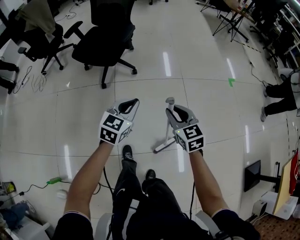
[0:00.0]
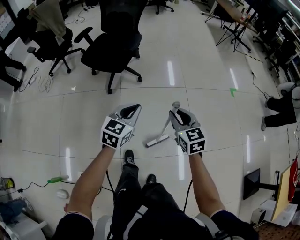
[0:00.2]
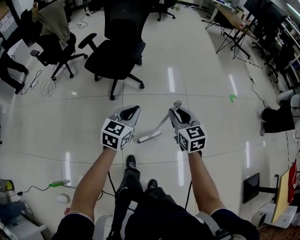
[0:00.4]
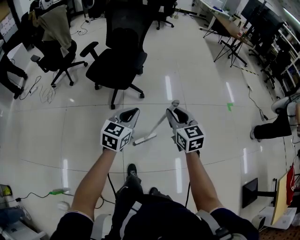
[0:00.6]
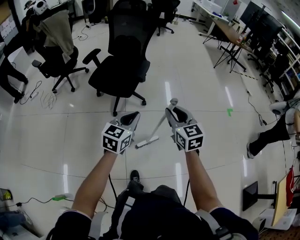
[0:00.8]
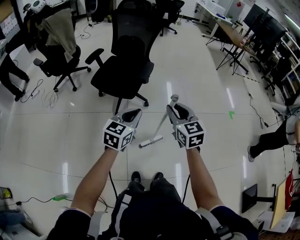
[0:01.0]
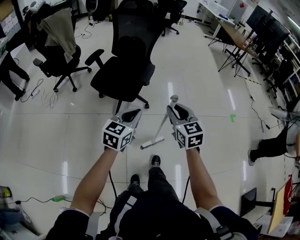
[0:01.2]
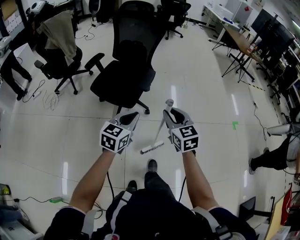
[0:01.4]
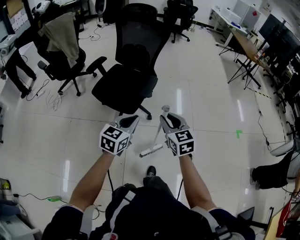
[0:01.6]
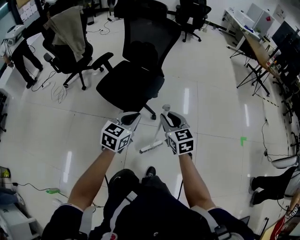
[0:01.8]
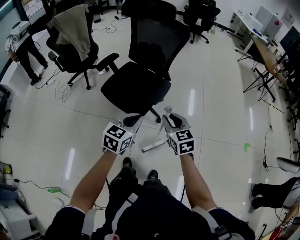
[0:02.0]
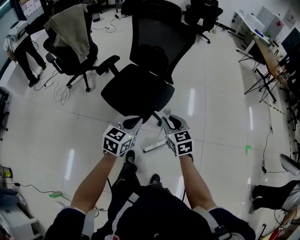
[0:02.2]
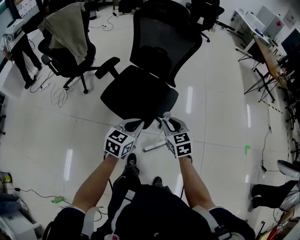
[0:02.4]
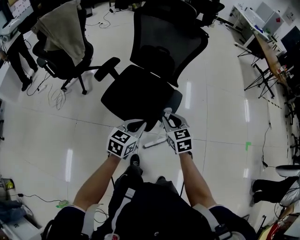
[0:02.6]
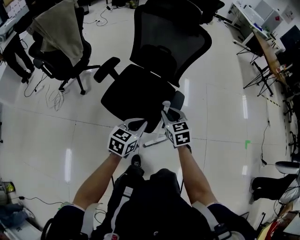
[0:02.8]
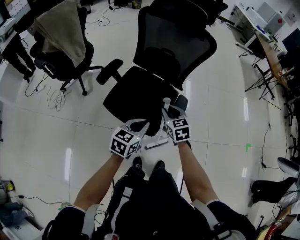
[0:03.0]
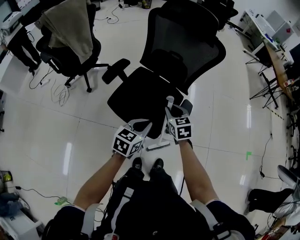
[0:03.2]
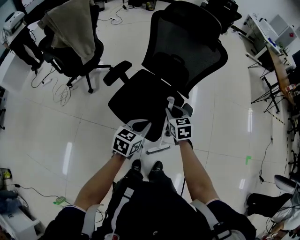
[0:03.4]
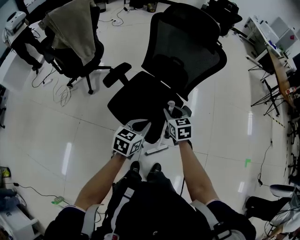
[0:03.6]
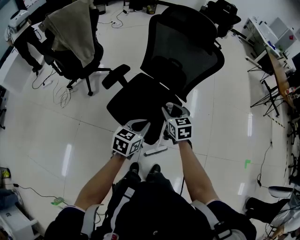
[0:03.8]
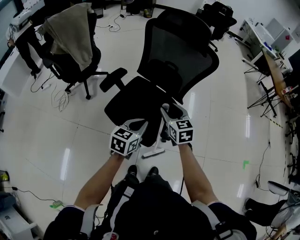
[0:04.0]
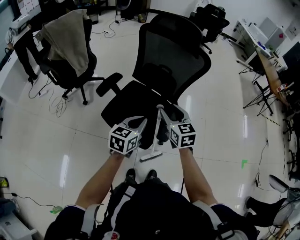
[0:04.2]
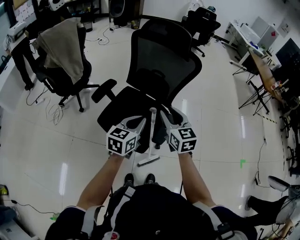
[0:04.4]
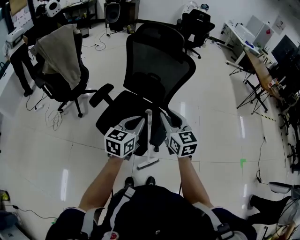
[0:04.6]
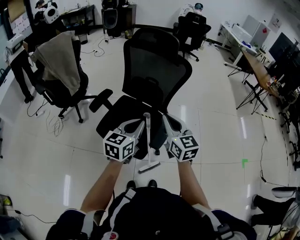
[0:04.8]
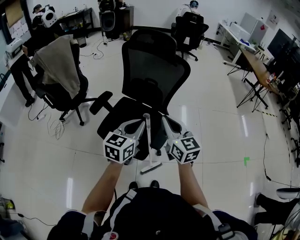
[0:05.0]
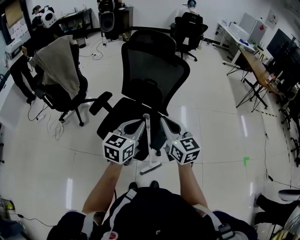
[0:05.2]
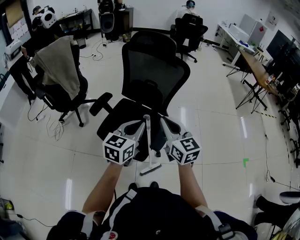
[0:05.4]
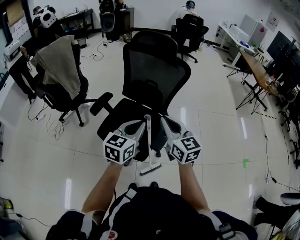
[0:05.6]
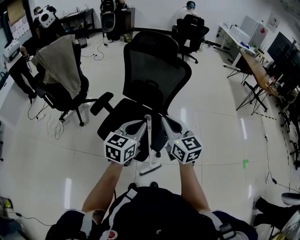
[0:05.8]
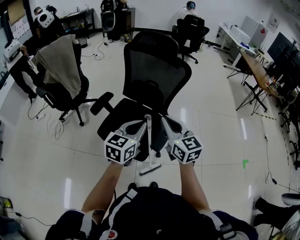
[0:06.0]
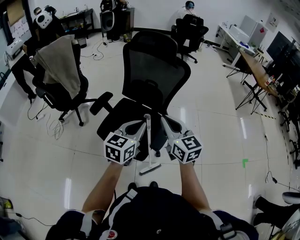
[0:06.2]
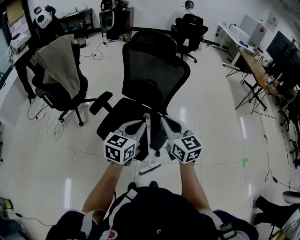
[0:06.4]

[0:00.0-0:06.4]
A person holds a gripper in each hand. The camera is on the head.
0:00.0 to 0:01.6: The right gripper moves forward and to the left, approximately 30 cm; the left gripper shifts about 25 cm forward, to the left and upward.
0:01.6 to 0:03.2: Both grippers travel together forward and to the left, approximately 35 cm.
0:03.2 to 0:04.8: The left gripper moves upward and to the right, roughly 15 cm; the right gripper shifts some 20 cm upward, rotates some 30 degrees, and closes its fingers.
0:04.8 to 0:06.4: The grippers move only a little.

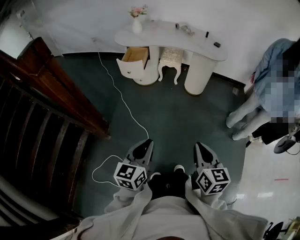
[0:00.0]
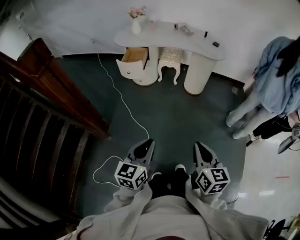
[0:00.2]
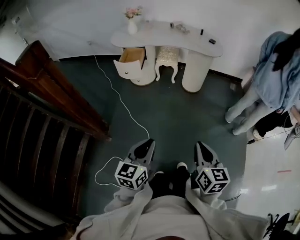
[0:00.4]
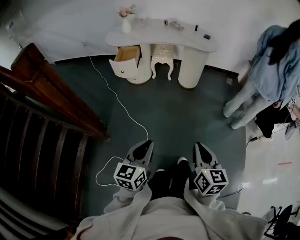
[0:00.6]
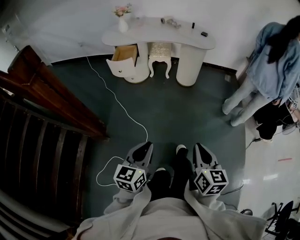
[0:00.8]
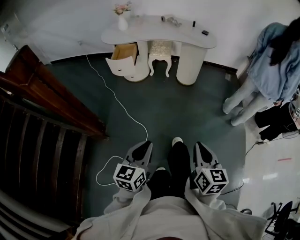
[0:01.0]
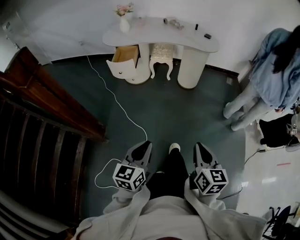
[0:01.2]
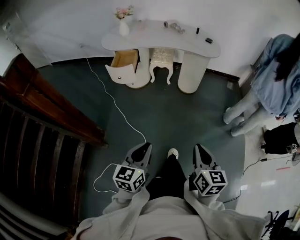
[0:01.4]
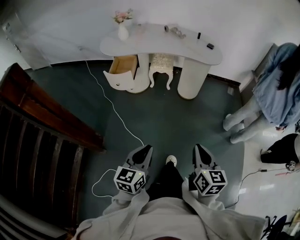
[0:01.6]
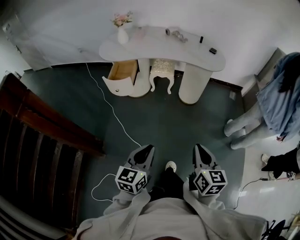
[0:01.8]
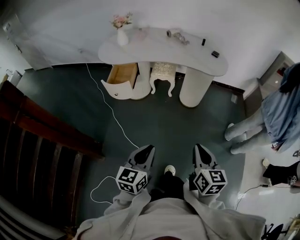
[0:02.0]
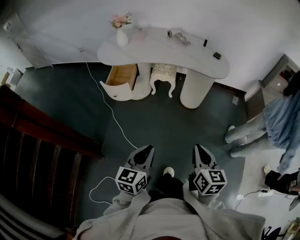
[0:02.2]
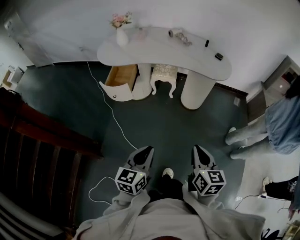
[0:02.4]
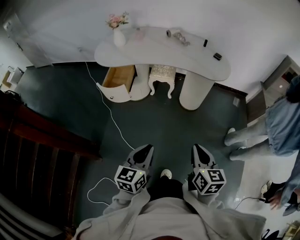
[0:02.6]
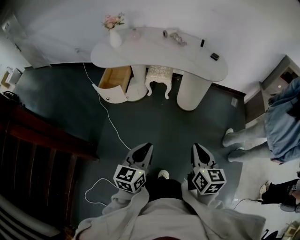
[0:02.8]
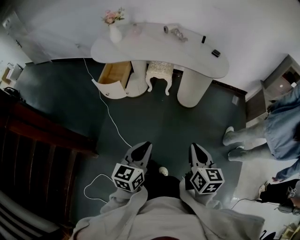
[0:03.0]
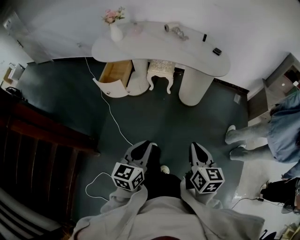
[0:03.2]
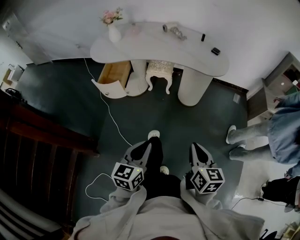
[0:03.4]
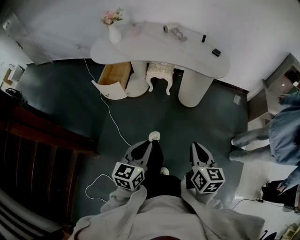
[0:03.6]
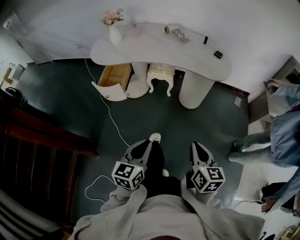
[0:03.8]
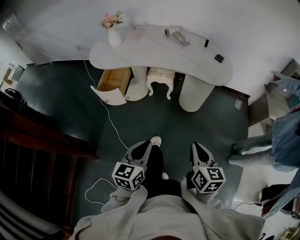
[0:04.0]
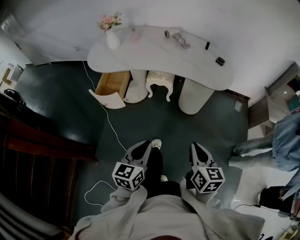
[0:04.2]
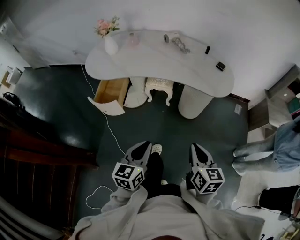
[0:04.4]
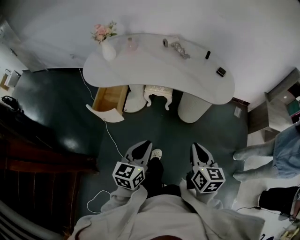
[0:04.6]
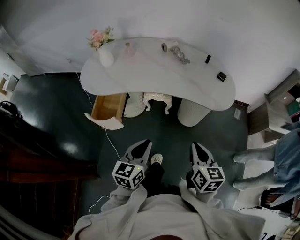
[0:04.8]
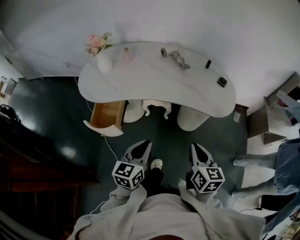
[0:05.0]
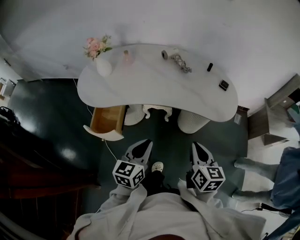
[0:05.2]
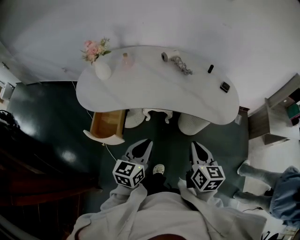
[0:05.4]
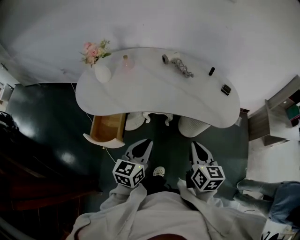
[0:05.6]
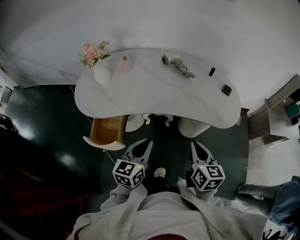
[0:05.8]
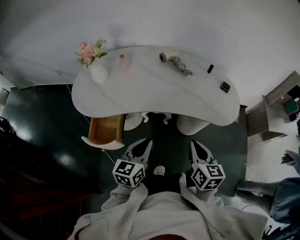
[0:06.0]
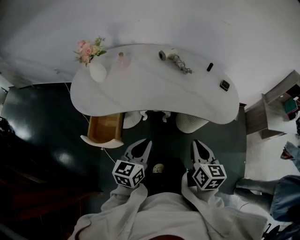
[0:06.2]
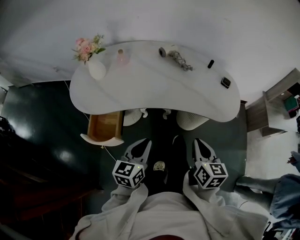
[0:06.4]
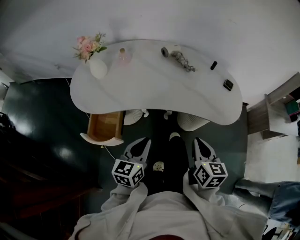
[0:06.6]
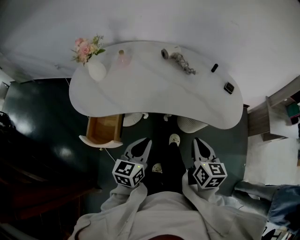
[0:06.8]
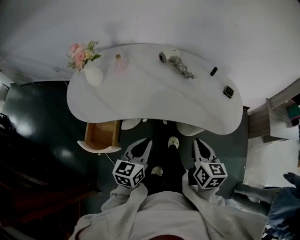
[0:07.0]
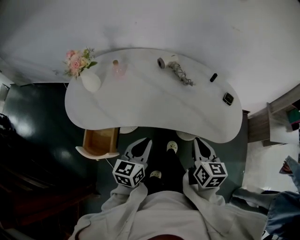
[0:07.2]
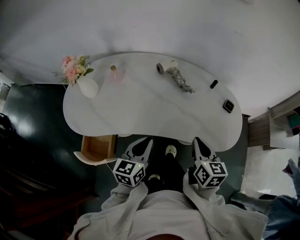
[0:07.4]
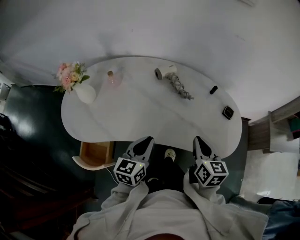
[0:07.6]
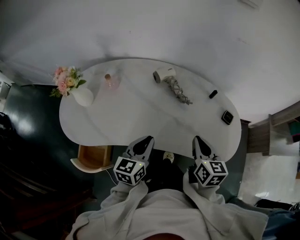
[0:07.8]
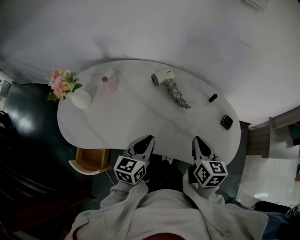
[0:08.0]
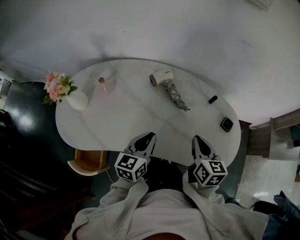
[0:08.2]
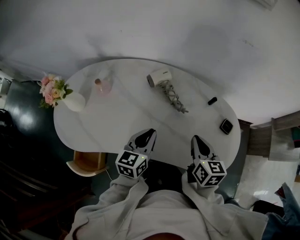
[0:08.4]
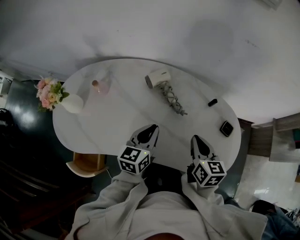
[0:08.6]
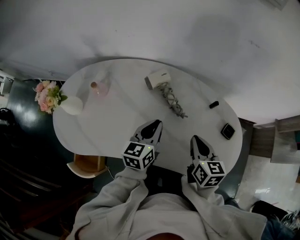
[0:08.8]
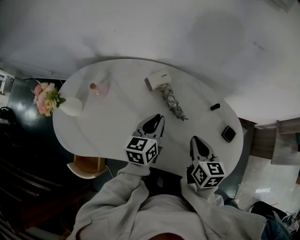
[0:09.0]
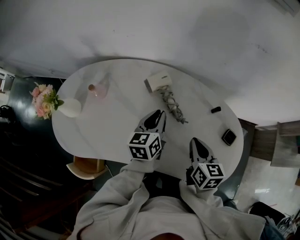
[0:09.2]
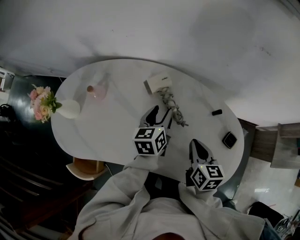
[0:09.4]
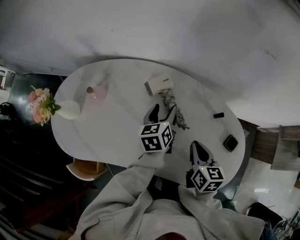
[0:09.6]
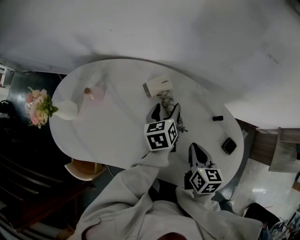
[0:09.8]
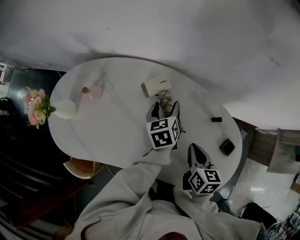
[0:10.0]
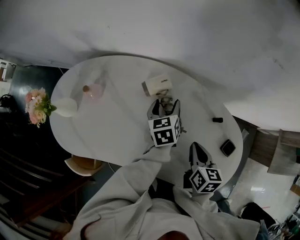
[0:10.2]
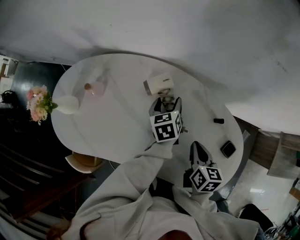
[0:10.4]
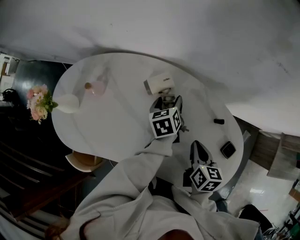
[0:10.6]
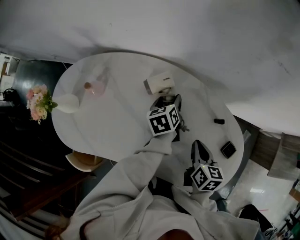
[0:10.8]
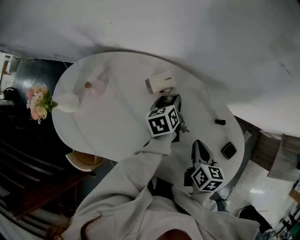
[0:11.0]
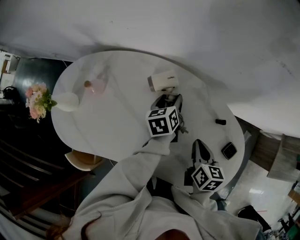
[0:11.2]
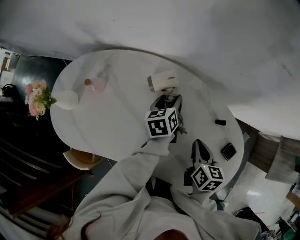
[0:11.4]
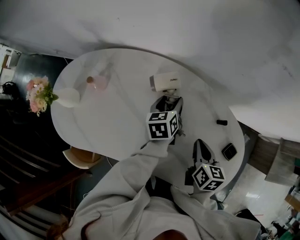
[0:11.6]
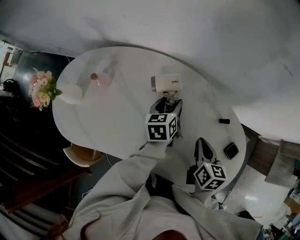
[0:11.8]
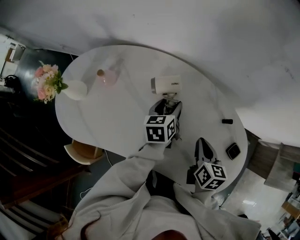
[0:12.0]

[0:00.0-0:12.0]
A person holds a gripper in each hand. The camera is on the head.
0:00.0 to 0:01.6: The grippers both shift forward by roughly 10 cm.
0:01.6 to 0:03.0: Both grippers travel together forward, roughly 20 cm.
0:03.0 to 0:04.4: Both grippers travel together forward, roughly 15 cm.
0:04.4 to 0:06.0: The right gripper shifts about 25 cm forward and to the left; the left gripper is displaced forward by approximately 25 cm.
0:06.0 to 0:07.6: Both grippers move forward, some 20 cm.
0:07.6 to 0:09.0: The right gripper travels forward by about 15 cm. Meanwhile the left gripper goes roughly 20 cm forward.
0:09.0 to 0:10.4: The left gripper travels forward and downward by approximately 15 cm, changes its angle by about 30 degrees, and opens its fingers, while the right gripper moves about 5 cm.
0:10.4 to 0:12.0: The left gripper shifts by roughly 5 cm.

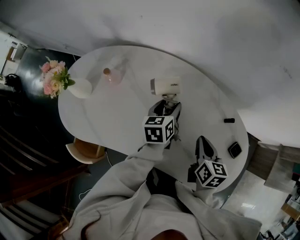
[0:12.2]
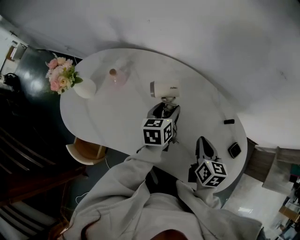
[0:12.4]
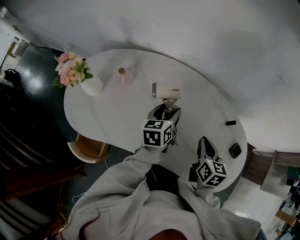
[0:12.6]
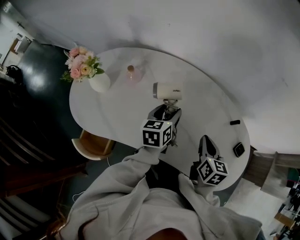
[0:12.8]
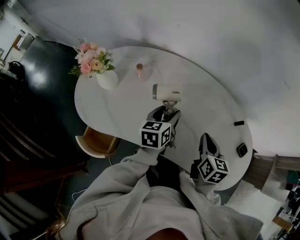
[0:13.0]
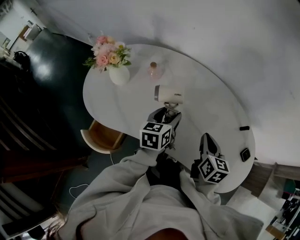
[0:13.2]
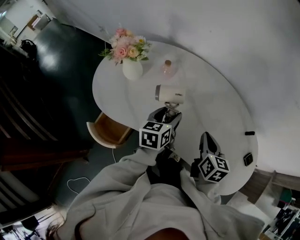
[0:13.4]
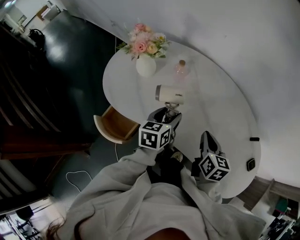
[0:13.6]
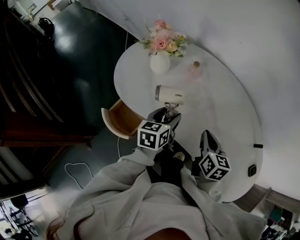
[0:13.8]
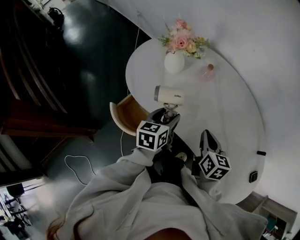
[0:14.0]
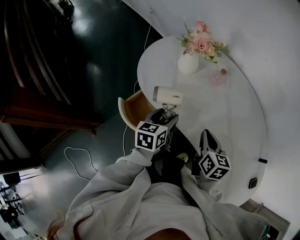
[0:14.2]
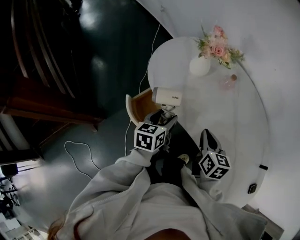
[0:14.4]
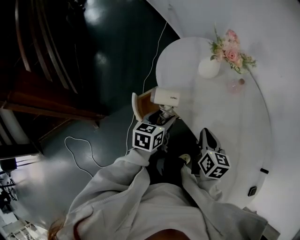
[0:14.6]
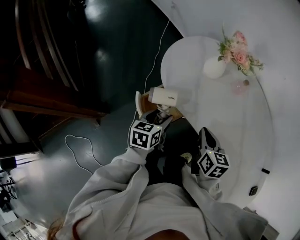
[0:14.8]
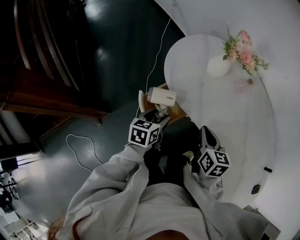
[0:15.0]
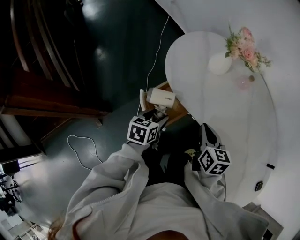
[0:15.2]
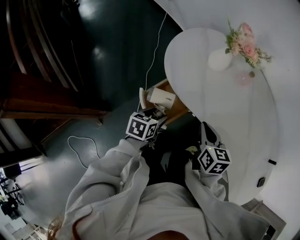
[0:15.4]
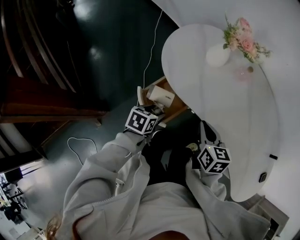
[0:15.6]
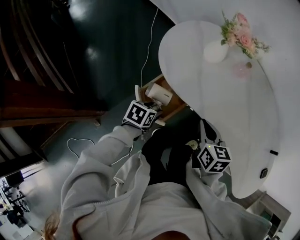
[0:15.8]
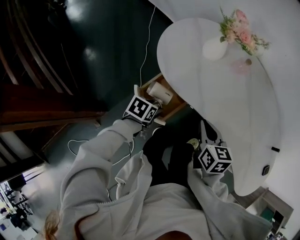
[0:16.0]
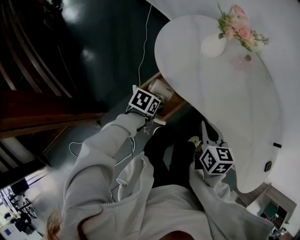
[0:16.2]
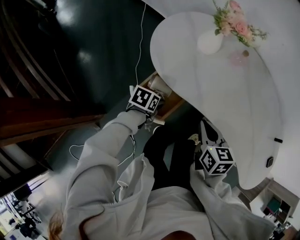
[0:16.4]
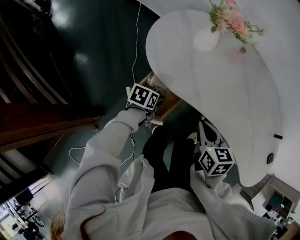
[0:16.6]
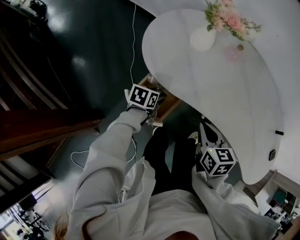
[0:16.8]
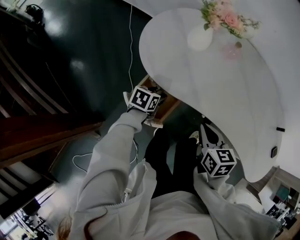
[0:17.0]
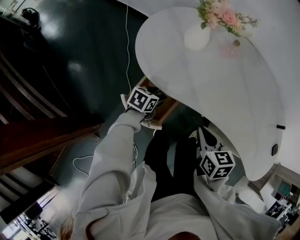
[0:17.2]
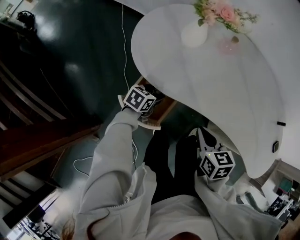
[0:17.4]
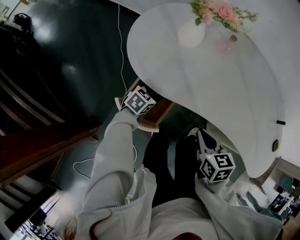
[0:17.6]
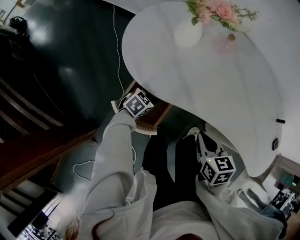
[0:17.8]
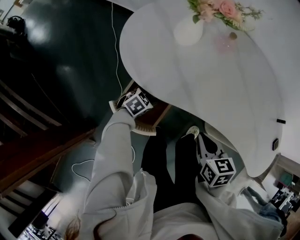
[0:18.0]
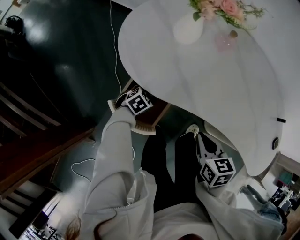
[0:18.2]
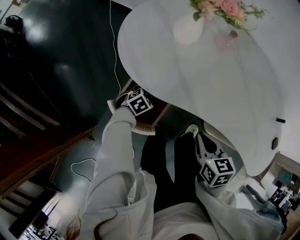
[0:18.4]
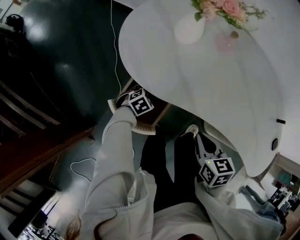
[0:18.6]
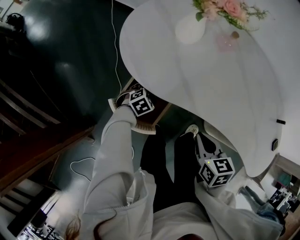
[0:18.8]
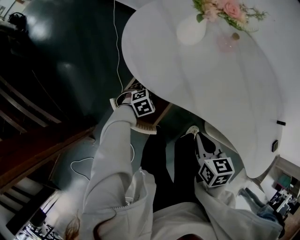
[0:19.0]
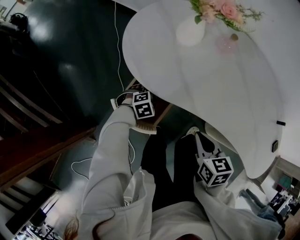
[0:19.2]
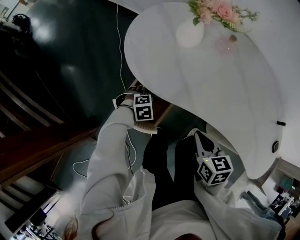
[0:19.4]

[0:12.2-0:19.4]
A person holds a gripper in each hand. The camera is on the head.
0:12.2 to 0:13.6: The right gripper is displaced to the left by approximately 20 cm. The left gripper is displaced to the left and backward by approximately 30 cm.
0:13.6 to 0:15.0: The grippers both shift to the left by roughly 30 cm. The right gripper rotates about 30 degrees.
0:15.0 to 0:16.6: The left gripper goes approximately 10 cm downward and forward, and changes its angle by roughly 30 degrees.
0:16.6 to 0:18.0: The left gripper shifts approximately 10 cm downward, and twists approximately 40 degrees clockwise, seen from behind. Meanwhile the right gripper ends up some 5 cm from where it was.
0:18.0 to 0:19.4: The left gripper rotates about 30 degrees.
